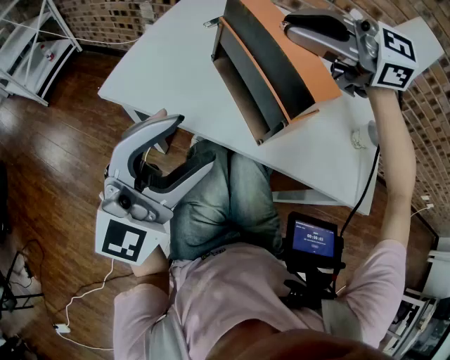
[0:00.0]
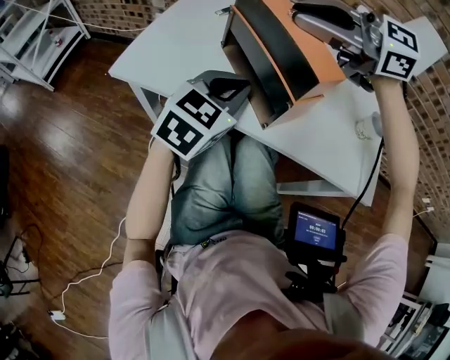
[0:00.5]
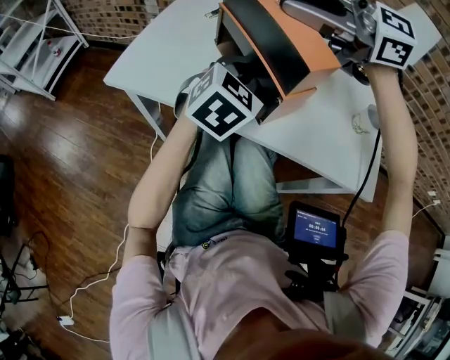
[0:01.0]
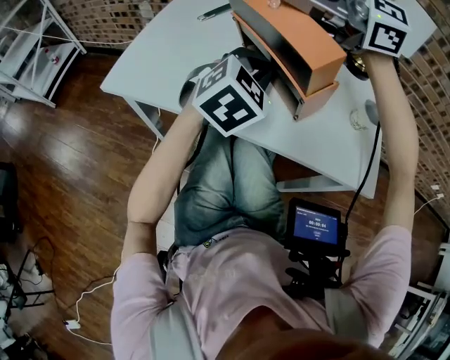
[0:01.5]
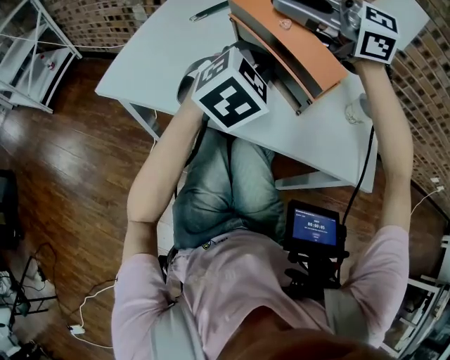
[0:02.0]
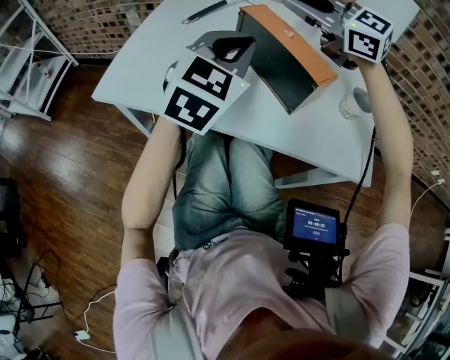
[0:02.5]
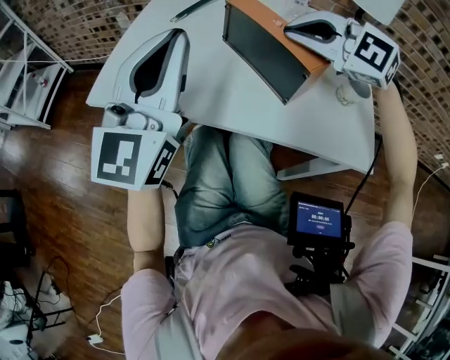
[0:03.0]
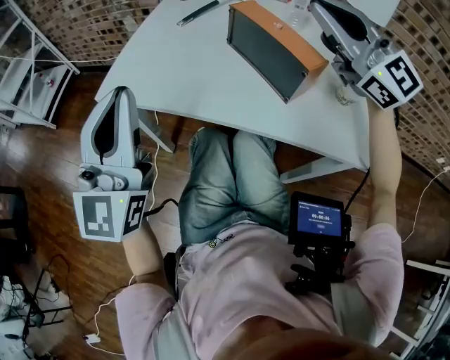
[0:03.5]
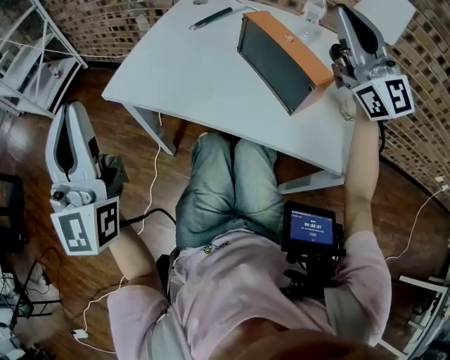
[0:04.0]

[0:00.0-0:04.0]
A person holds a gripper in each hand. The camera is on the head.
0:00.0 to 0:02.0: The left gripper shifts by some 25 cm, points its fingers approximately 40 degrees further downward, and closes.
0:02.0 to 0:04.0: The right gripper moves to the right, backward and upward, about 15 cm, and points its fingers roughly 30 degrees further upward. Meanwhile the left gripper is displaced to the left and upward by some 35 cm, and angles its fingers upward, by about 50 degrees.

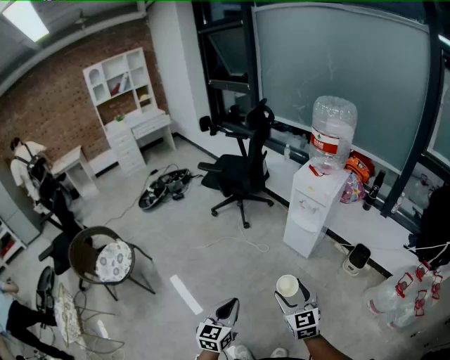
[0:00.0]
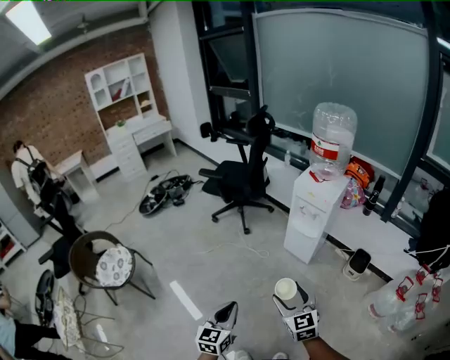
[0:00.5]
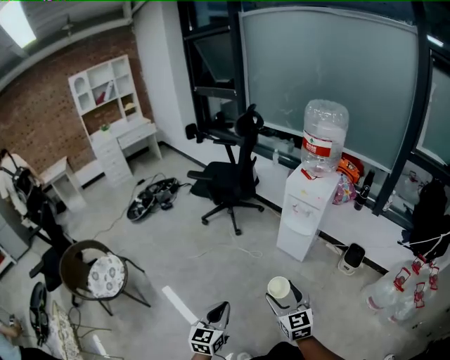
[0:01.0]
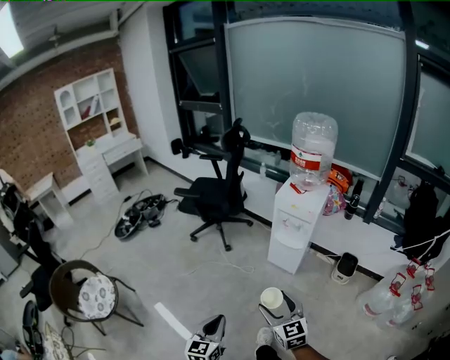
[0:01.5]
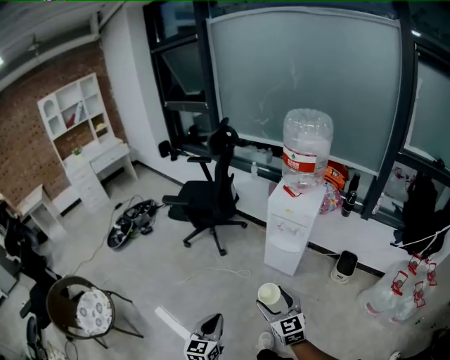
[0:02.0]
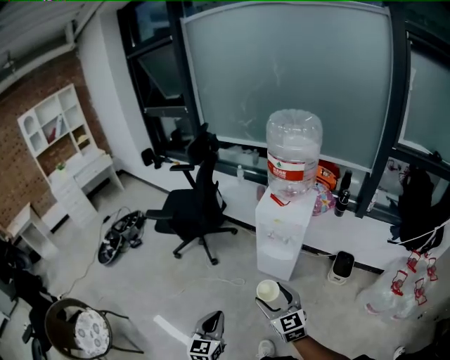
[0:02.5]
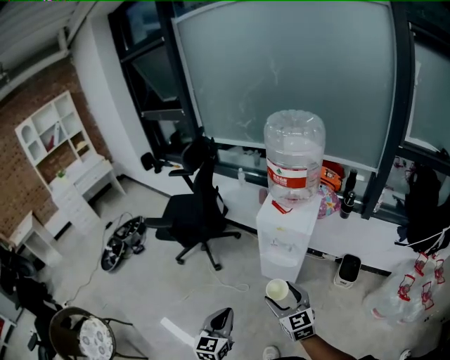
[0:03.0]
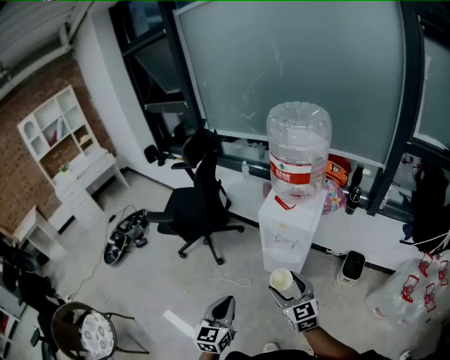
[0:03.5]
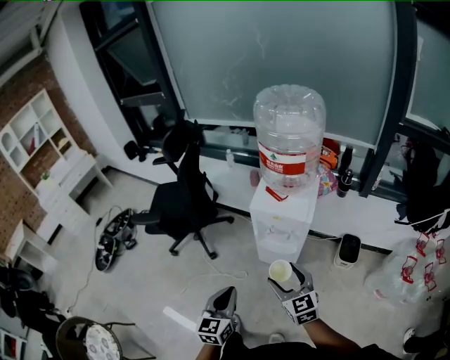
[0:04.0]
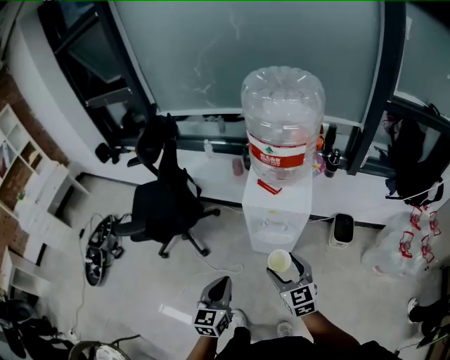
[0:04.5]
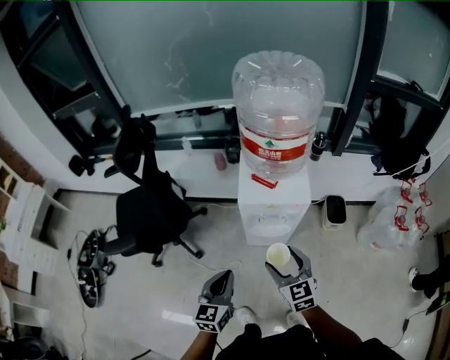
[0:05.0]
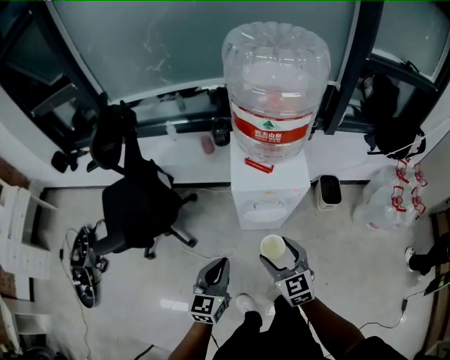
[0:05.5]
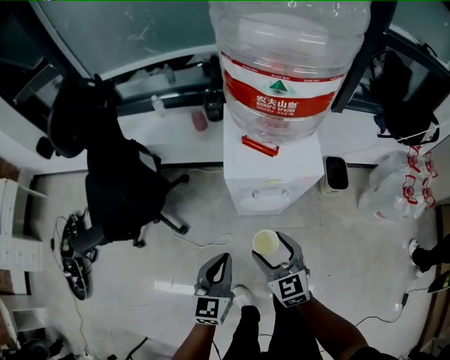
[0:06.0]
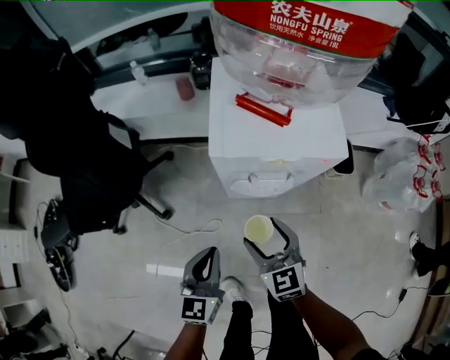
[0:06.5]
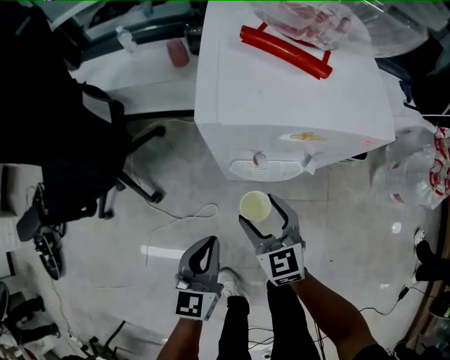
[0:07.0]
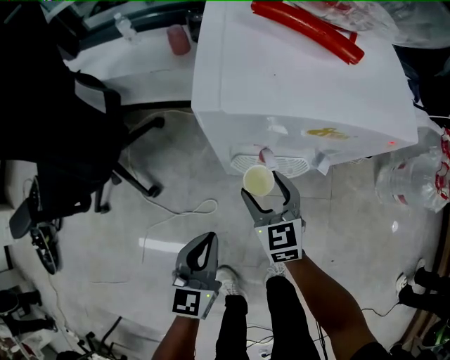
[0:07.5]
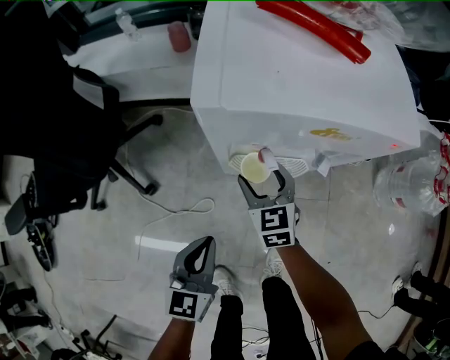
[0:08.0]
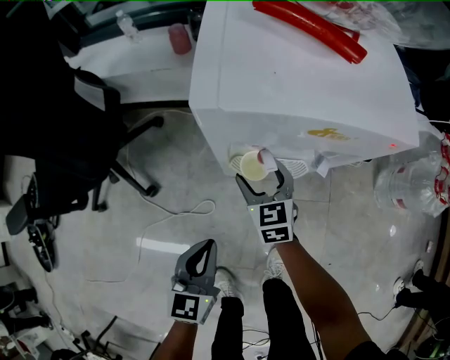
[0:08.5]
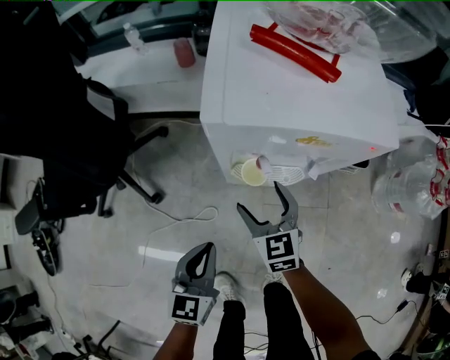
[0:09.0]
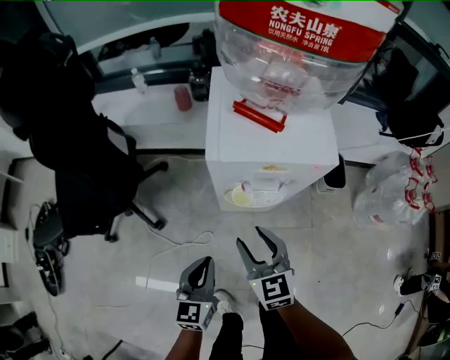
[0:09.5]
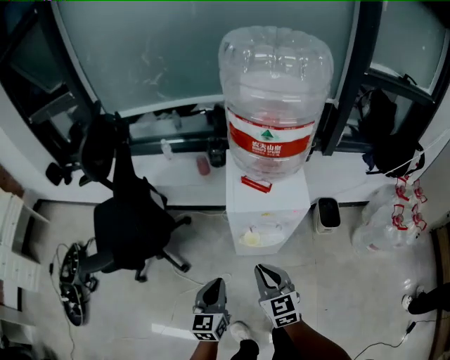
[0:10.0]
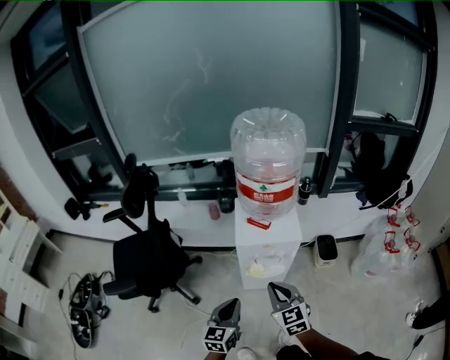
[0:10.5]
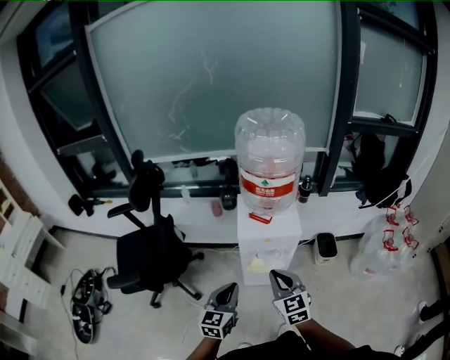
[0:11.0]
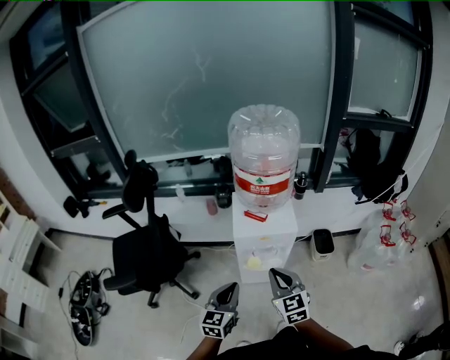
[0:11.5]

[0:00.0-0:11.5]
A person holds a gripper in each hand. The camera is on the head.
0:00.0 to 0:02.0: Both grippers move forward, roughly 15 cm.
0:02.0 to 0:04.0: Both grippers move forward, roughly 25 cm.
0:04.0 to 0:06.0: The left gripper heads forward and downward, covering approximately 20 cm, and rotates some 20 degrees, while the right gripper moves downward, forward and to the left, approximately 20 cm, and changes its angle by roughly 20 degrees.
0:06.0 to 0:07.5: The right gripper heads downward and forward, covering some 25 cm, while the left gripper shifts roughly 20 cm downward.
0:07.5 to 0:09.5: The left gripper heads upward, covering roughly 5 cm. The right gripper goes some 15 cm upward and backward.
0:09.5 to 0:11.5: Both grippers move upward, roughly 25 cm. The right gripper closes its fingers.

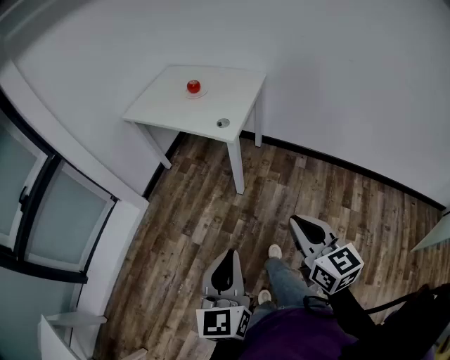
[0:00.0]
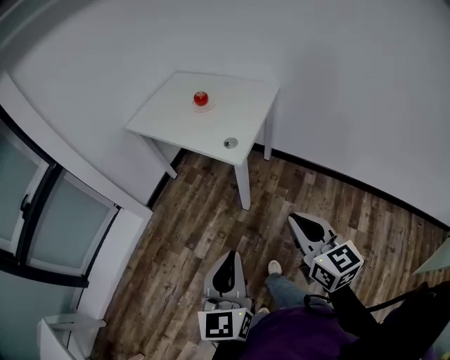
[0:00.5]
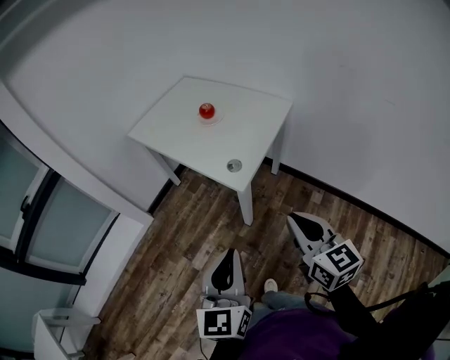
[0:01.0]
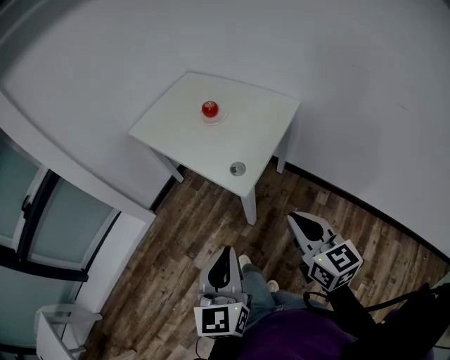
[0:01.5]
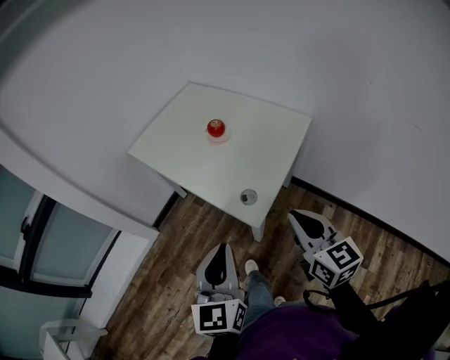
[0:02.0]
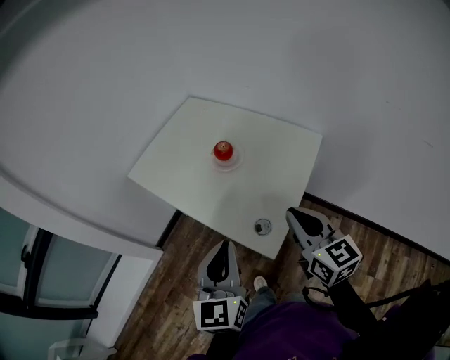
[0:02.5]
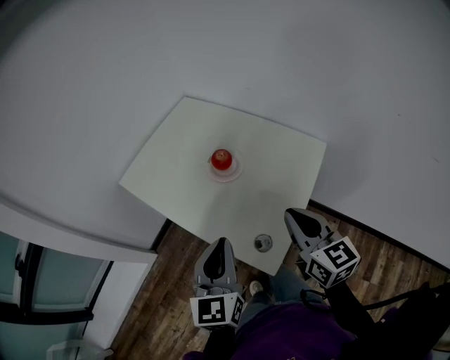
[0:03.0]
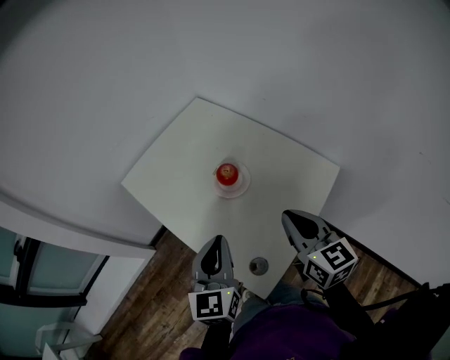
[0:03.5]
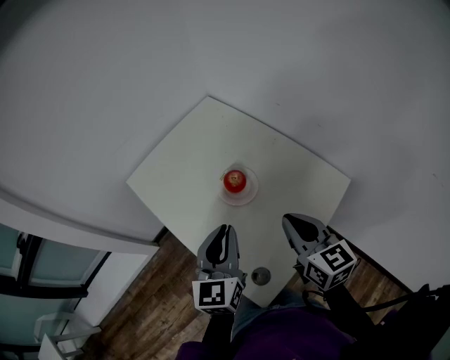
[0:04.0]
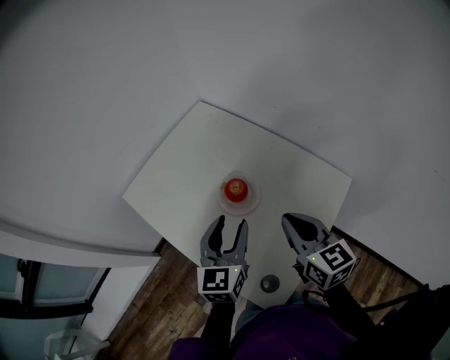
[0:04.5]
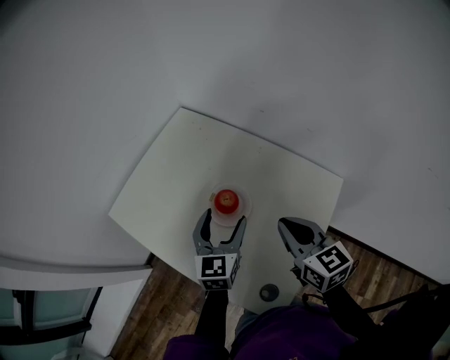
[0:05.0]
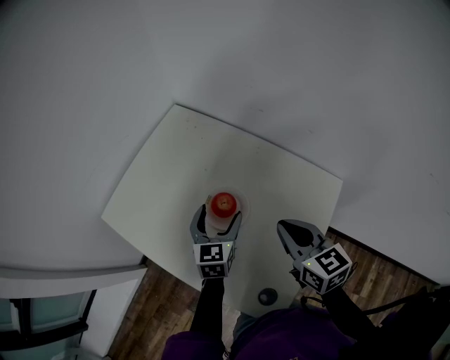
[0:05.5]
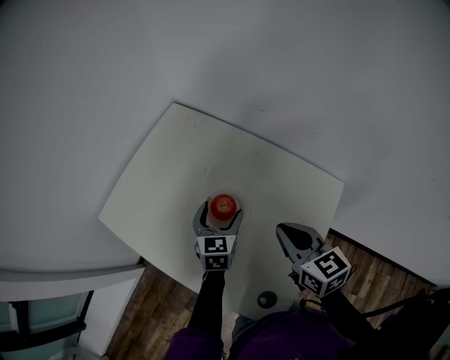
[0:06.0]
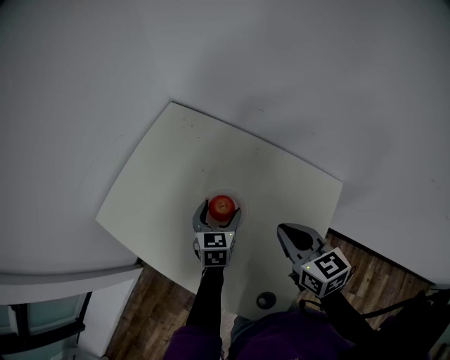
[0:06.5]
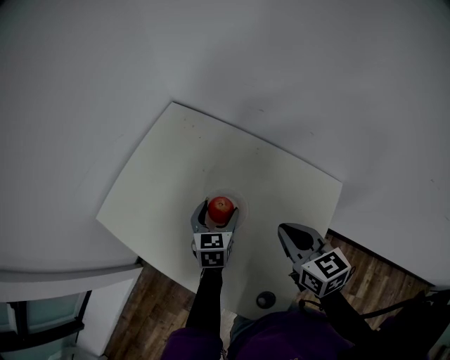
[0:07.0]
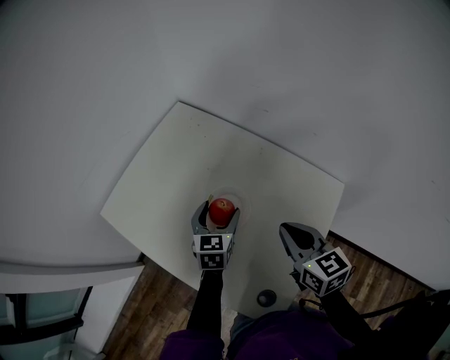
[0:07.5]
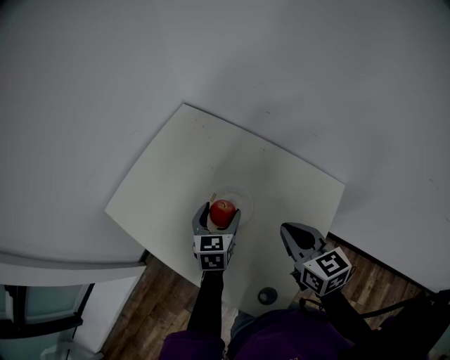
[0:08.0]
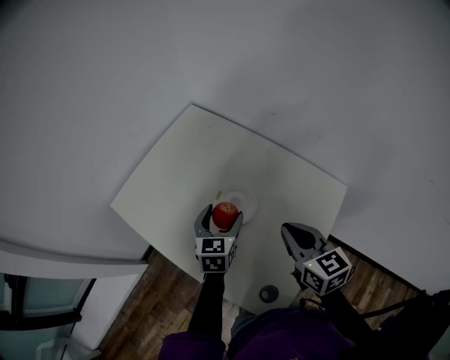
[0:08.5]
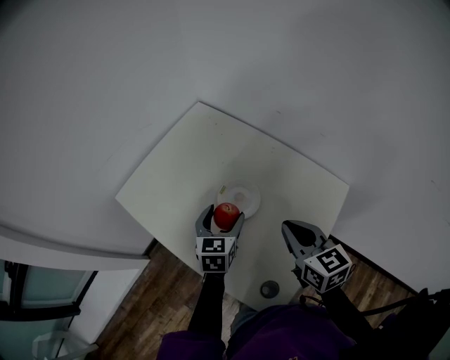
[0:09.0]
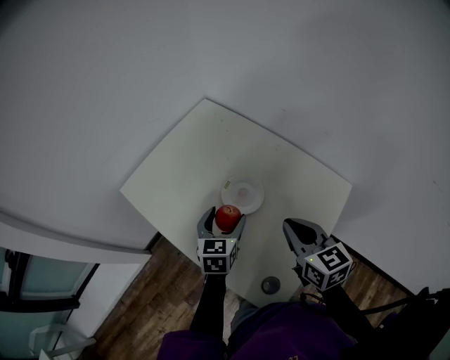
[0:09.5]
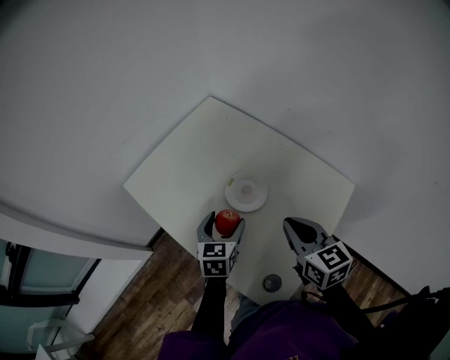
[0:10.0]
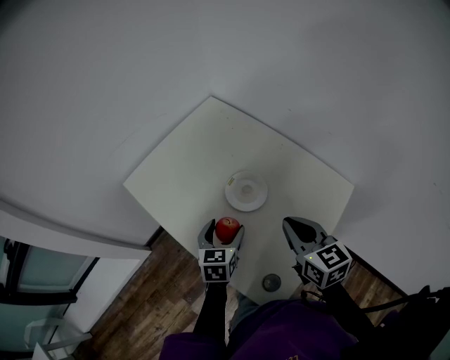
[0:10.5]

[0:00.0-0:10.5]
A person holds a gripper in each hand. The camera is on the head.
0:00.0 to 0:02.0: Both grippers are carried forward, roughly 40 cm.
0:02.0 to 0:04.0: Both grippers travel together forward, roughly 35 cm.
0:04.0 to 0:06.5: The left gripper shifts roughly 25 cm downward and forward, swivels about 30 degrees, and opens its fingers; the right gripper goes about 10 cm forward and downward.
0:06.5 to 0:08.5: The left gripper heads upward, covering some 5 cm.
0:08.5 to 0:10.5: The left gripper moves backward, about 10 cm.

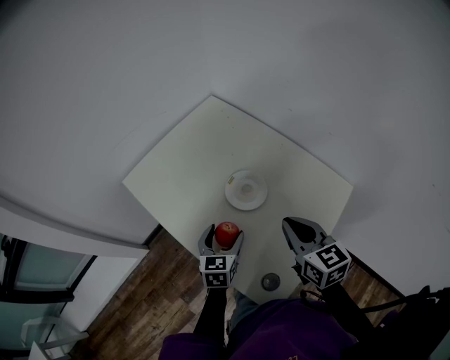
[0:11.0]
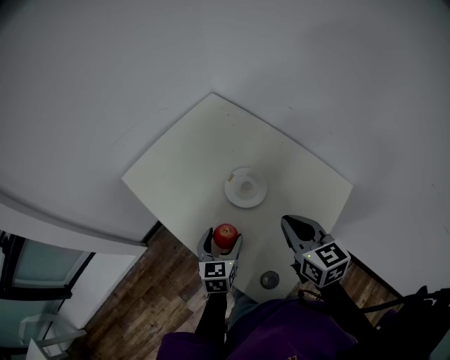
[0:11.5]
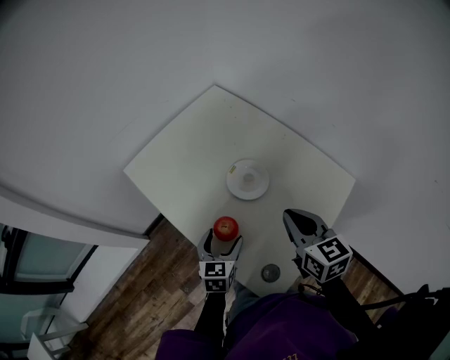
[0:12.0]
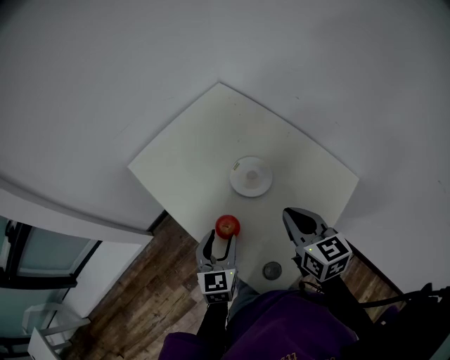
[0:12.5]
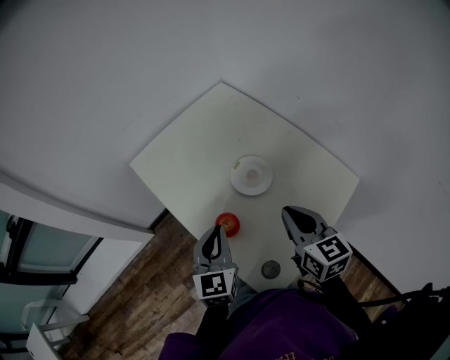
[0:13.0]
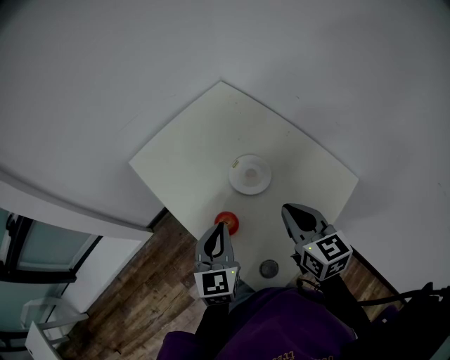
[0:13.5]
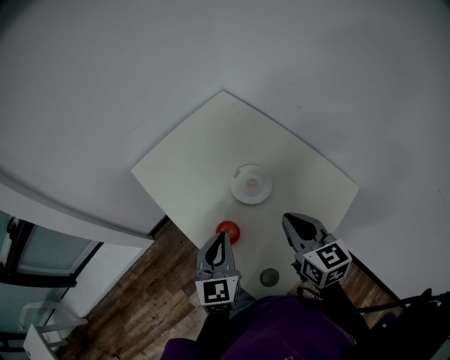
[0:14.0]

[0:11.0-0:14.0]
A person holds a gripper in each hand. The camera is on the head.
0:11.0 to 0:12.5: The left gripper moves backward, roughly 5 cm.
0:12.5 to 0:14.0: The left gripper shifts about 5 cm upward, and closes.
